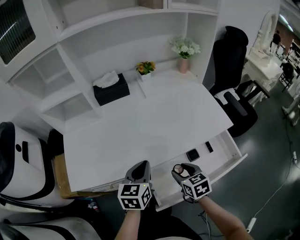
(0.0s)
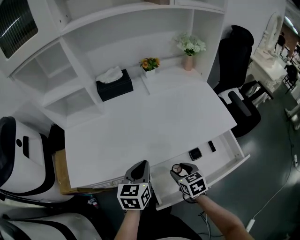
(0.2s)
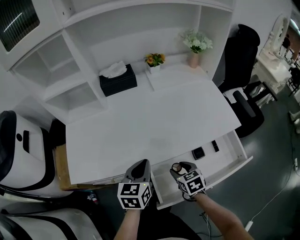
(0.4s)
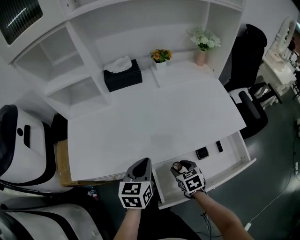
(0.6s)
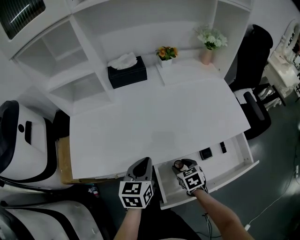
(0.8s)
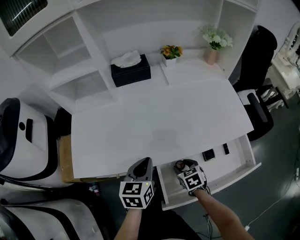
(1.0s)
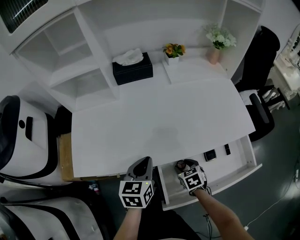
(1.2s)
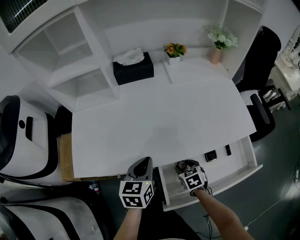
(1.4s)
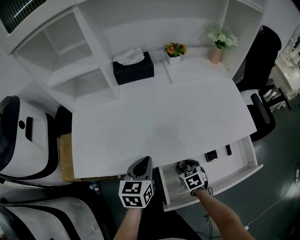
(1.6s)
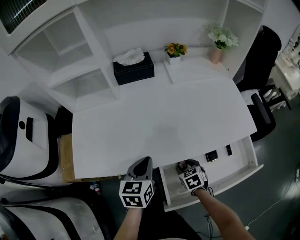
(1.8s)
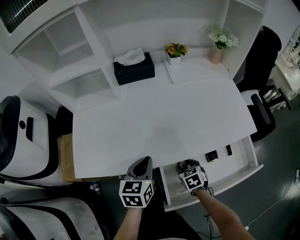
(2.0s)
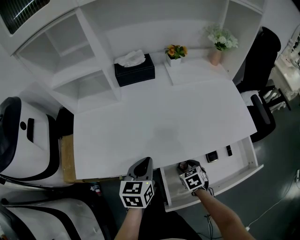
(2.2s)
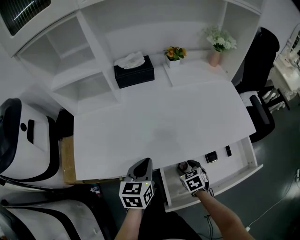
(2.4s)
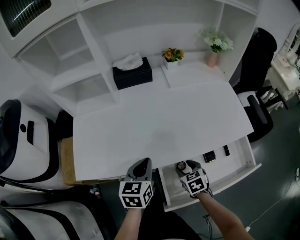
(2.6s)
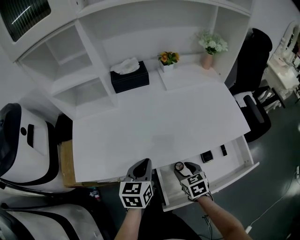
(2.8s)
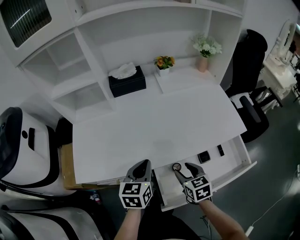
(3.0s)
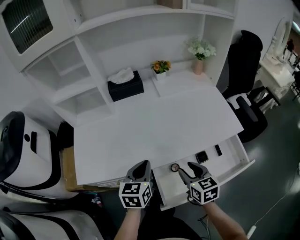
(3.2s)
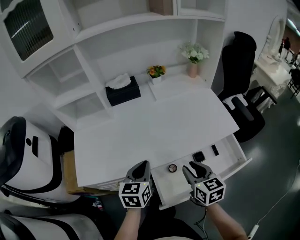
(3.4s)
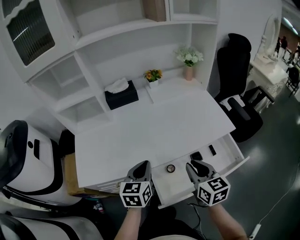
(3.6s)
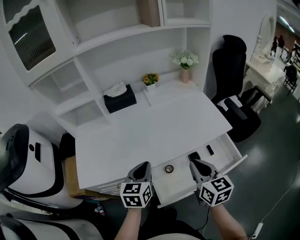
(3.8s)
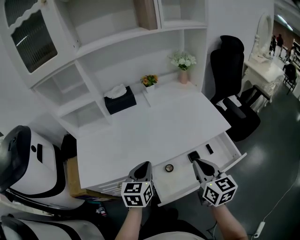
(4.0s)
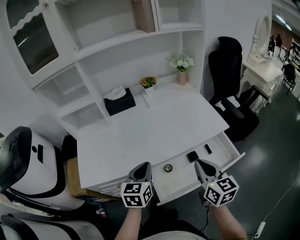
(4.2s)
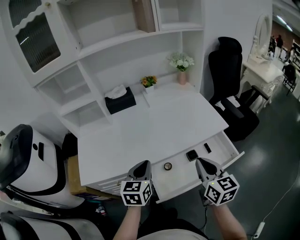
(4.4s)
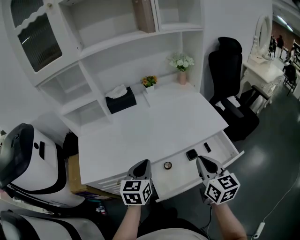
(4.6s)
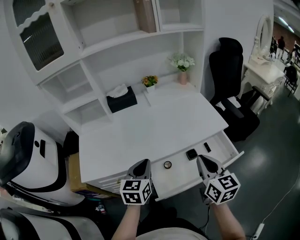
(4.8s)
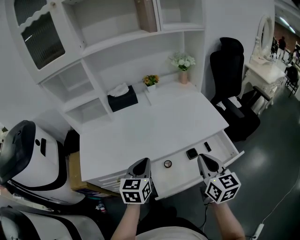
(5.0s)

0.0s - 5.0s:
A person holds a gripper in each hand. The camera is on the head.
0.0s - 1.6s: The right gripper moves downward, about 15 cm; the left gripper shifts some 5 cm to the left.
1.6s - 3.4s: The right gripper heads upward, covering some 20 cm, and angles its fingers upward, by approximately 30 degrees. Meanwhile the left gripper heads upward, covering about 5 cm.
3.4s - 5.0s: The right gripper shifts about 15 cm upward, to the right and backward, and closes, while the left gripper is displaced backward and upward by some 10 cm.

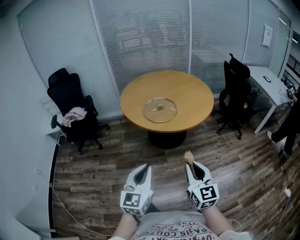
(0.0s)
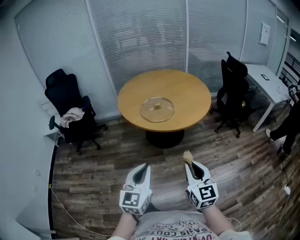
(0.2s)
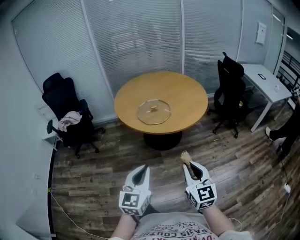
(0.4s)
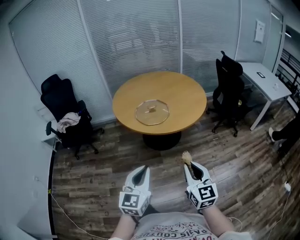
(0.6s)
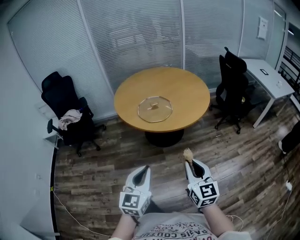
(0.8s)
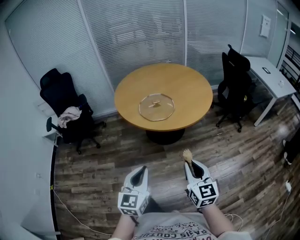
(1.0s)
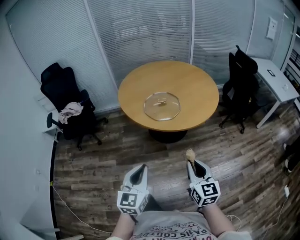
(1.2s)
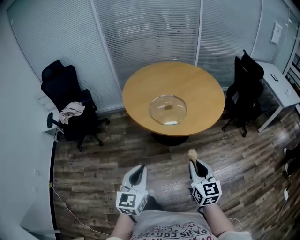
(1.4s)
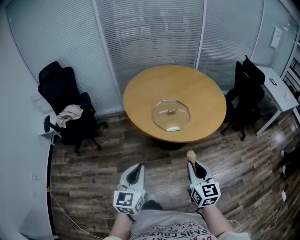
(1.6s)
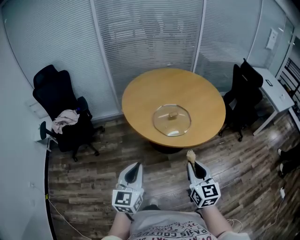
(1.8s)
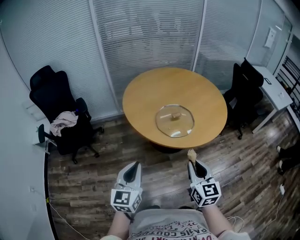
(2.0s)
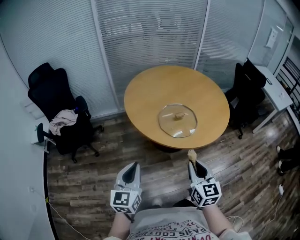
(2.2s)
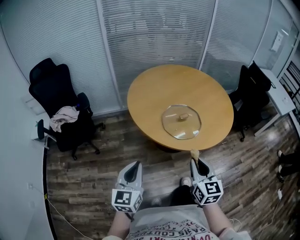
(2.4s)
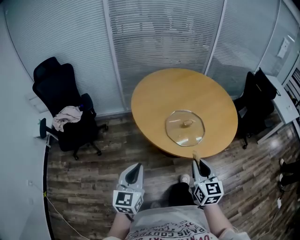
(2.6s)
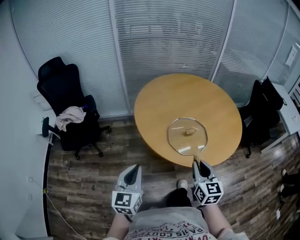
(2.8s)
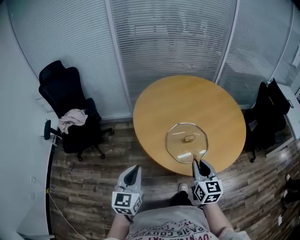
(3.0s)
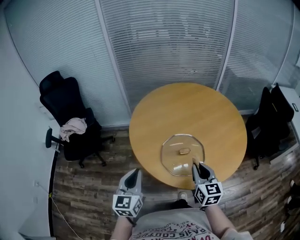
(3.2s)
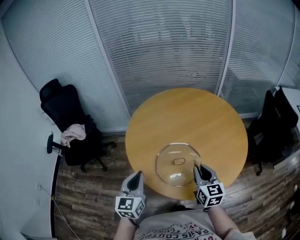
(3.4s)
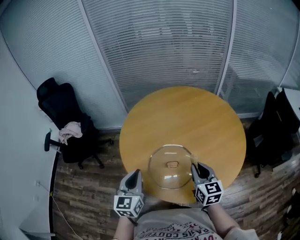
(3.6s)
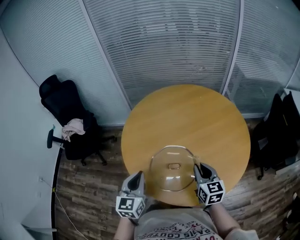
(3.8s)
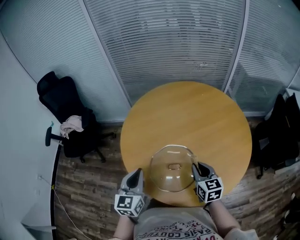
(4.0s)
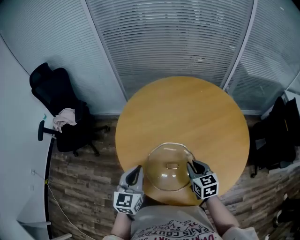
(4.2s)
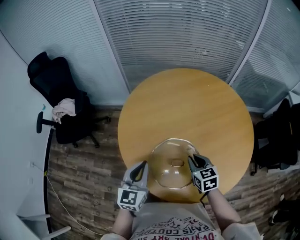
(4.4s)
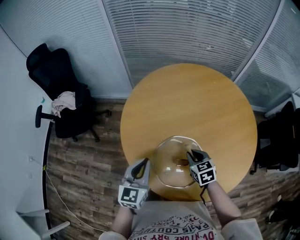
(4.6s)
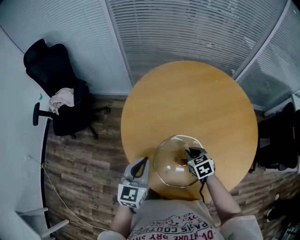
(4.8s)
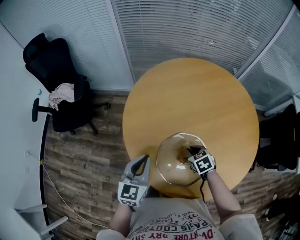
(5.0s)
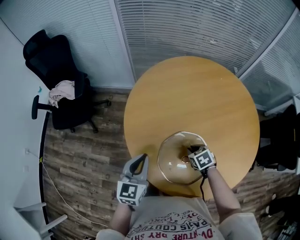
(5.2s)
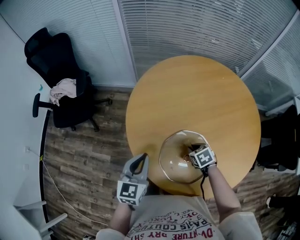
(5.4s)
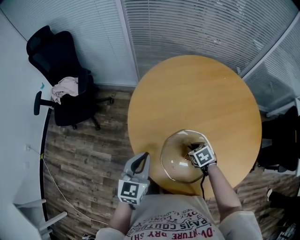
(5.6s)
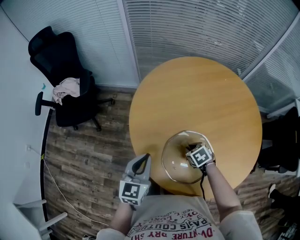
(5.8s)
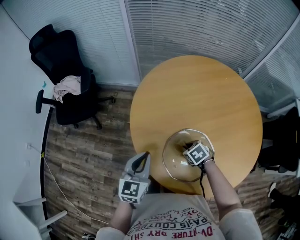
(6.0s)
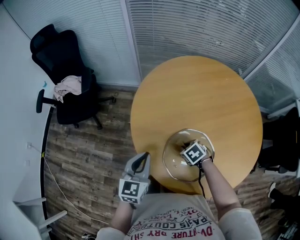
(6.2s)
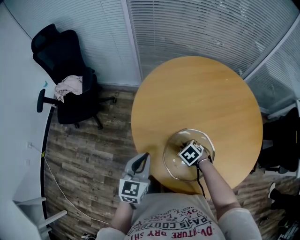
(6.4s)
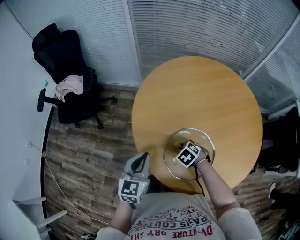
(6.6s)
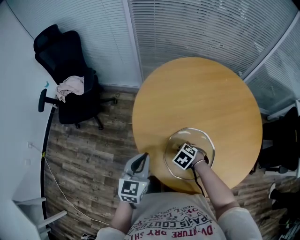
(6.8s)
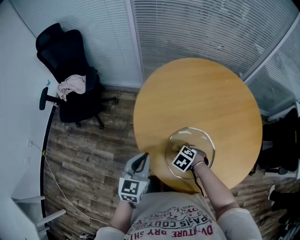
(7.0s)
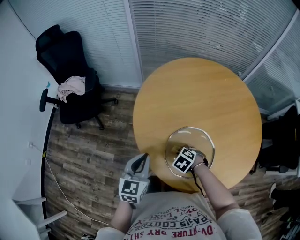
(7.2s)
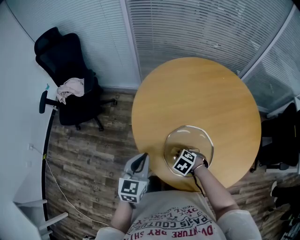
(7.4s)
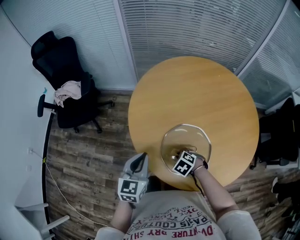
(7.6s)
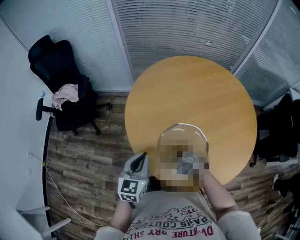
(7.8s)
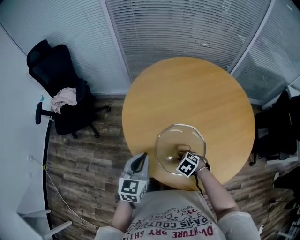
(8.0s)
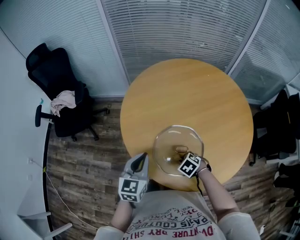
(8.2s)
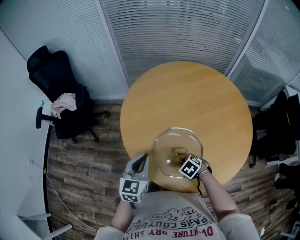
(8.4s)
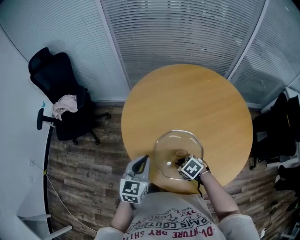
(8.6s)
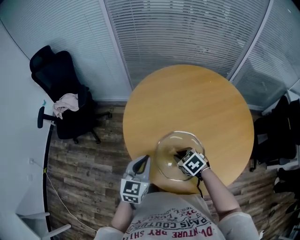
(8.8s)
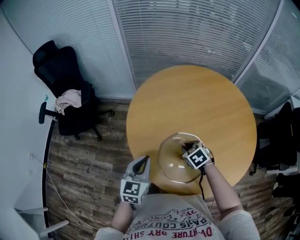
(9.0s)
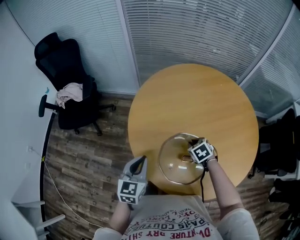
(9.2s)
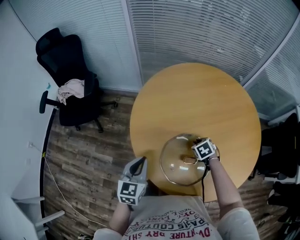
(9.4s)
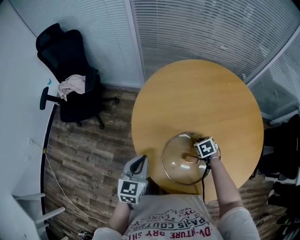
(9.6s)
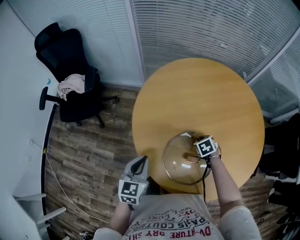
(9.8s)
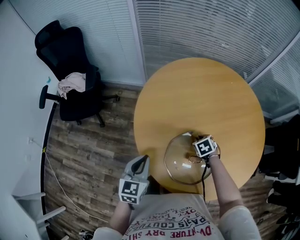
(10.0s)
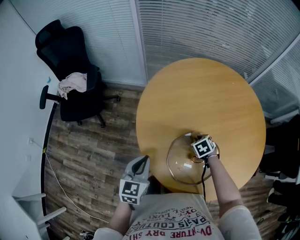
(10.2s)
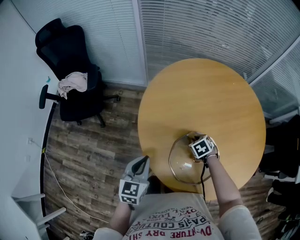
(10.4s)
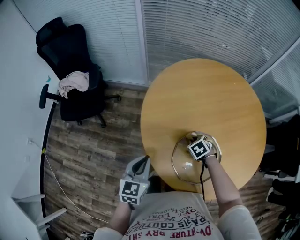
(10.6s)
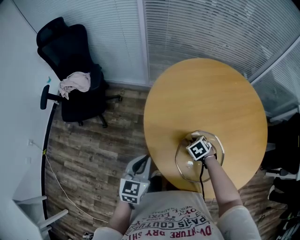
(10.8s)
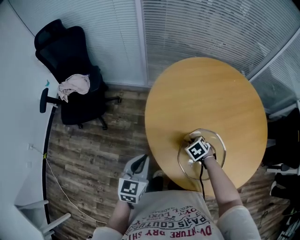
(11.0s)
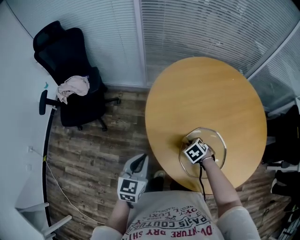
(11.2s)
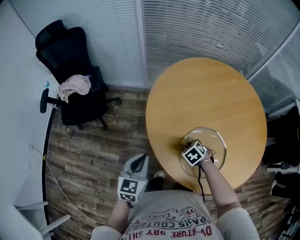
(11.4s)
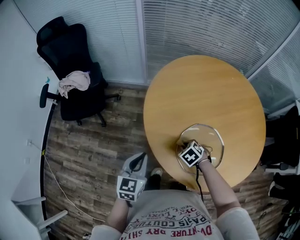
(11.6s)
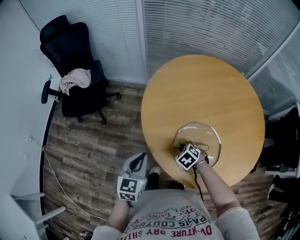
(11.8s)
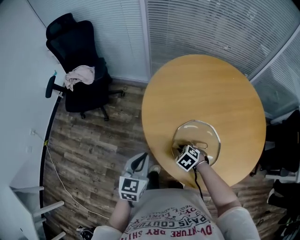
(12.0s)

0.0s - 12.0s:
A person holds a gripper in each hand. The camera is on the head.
0.0s - 1.6s: The two grippers go some 20 cm forward and to the left.
1.6s - 3.0s: The grippers both shift forward by roughly 25 cm.
3.0s - 4.4s: The left gripper moves forward and to the right, approximately 25 cm; the right gripper goes approximately 30 cm forward, downward and to the right, and turns by roughly 30 degrees.
4.4s - 6.0s: The left gripper is displaced to the left by approximately 10 cm; the right gripper shifts roughly 15 cm downward and to the left, and tilts its fingers approximately 30 degrees downward.
6.0s - 7.6s: The right gripper moves approximately 10 cm, and changes its angle by some 20 degrees.
7.6s - 9.0s: The right gripper moves some 15 cm, and turns by some 20 degrees.
9.0s - 10.4s: The left gripper heads to the left, covering approximately 10 cm; the right gripper moves downward and forward, roughly 10 cm.
10.4s - 12.0s: The right gripper shifts by about 15 cm, and turns by about 30 degrees, while the left gripper ends up approximately 10 cm from where it was.

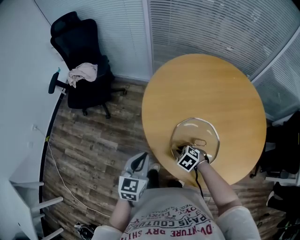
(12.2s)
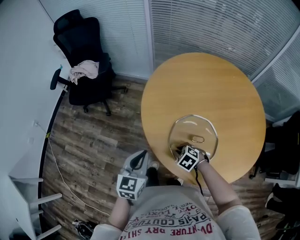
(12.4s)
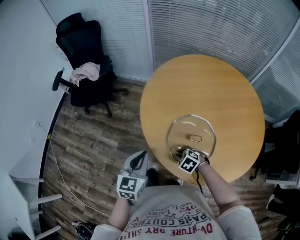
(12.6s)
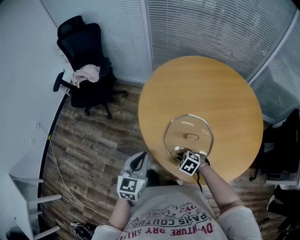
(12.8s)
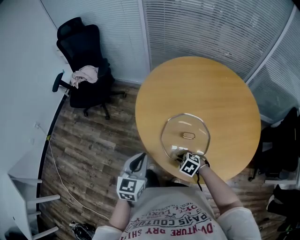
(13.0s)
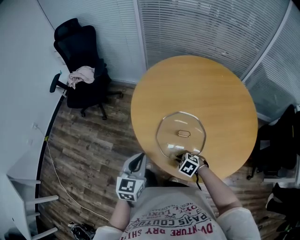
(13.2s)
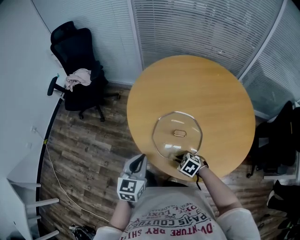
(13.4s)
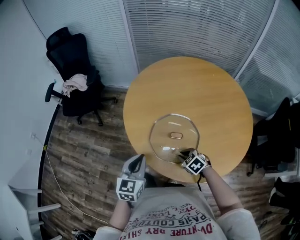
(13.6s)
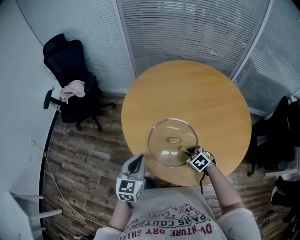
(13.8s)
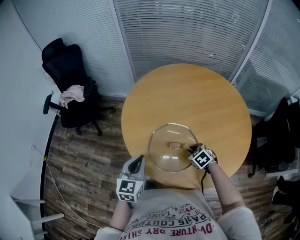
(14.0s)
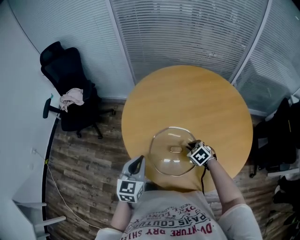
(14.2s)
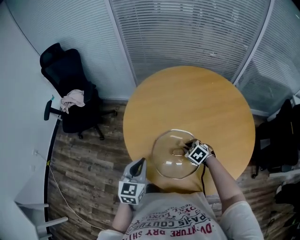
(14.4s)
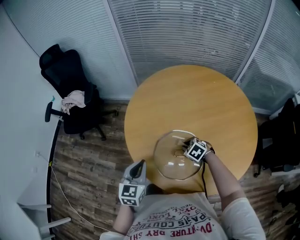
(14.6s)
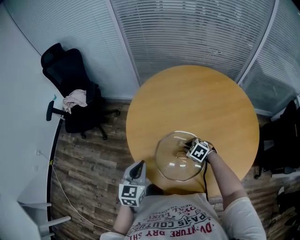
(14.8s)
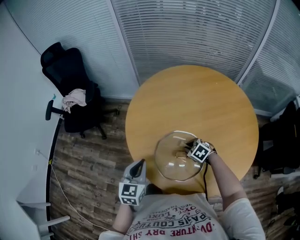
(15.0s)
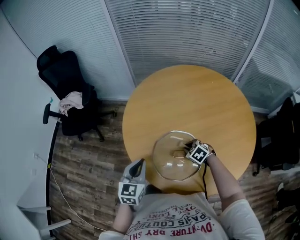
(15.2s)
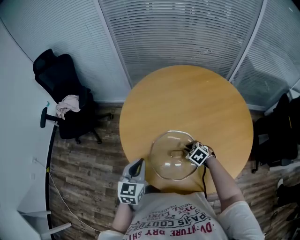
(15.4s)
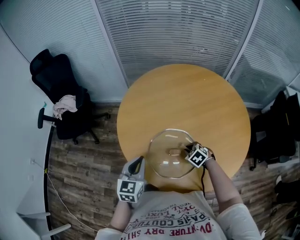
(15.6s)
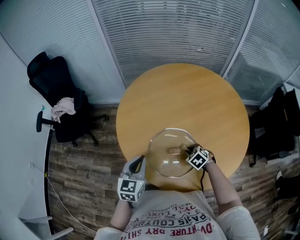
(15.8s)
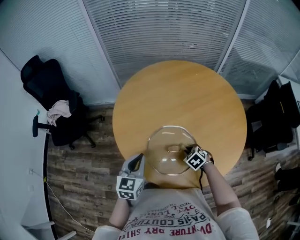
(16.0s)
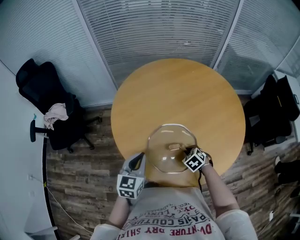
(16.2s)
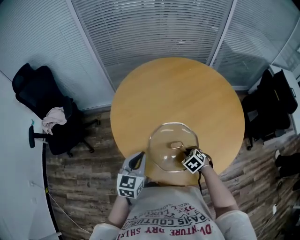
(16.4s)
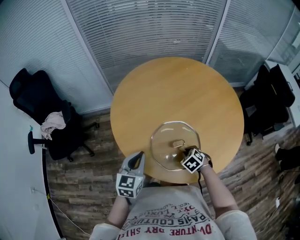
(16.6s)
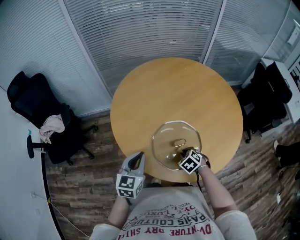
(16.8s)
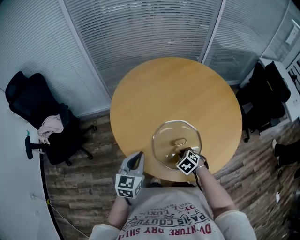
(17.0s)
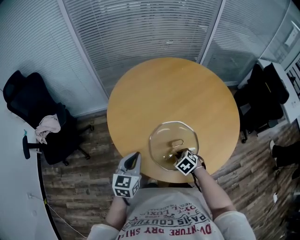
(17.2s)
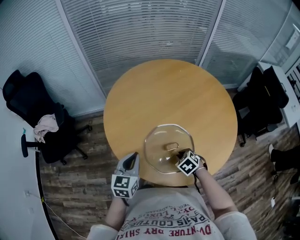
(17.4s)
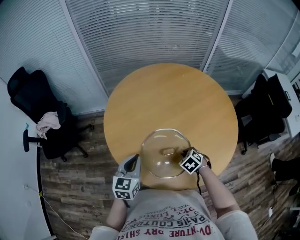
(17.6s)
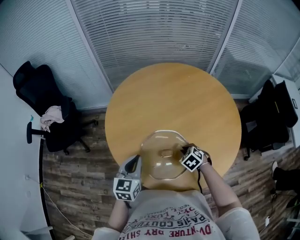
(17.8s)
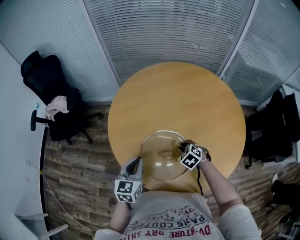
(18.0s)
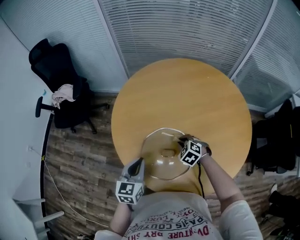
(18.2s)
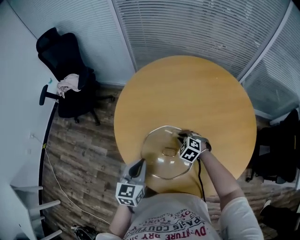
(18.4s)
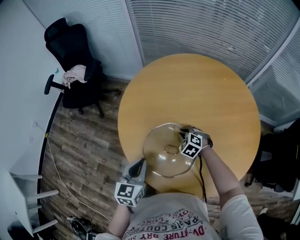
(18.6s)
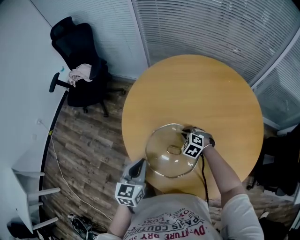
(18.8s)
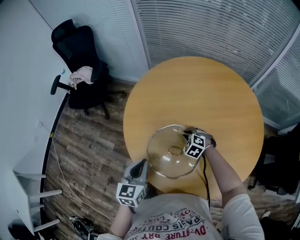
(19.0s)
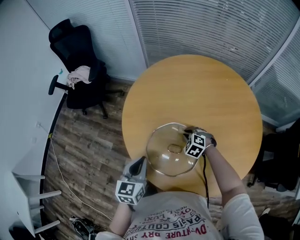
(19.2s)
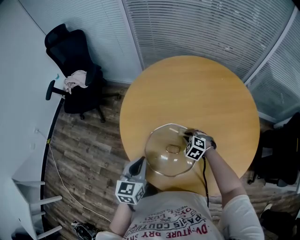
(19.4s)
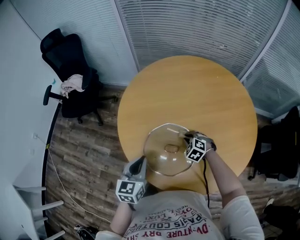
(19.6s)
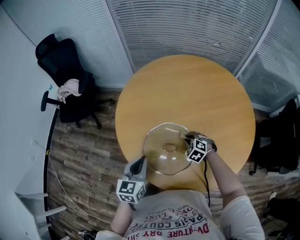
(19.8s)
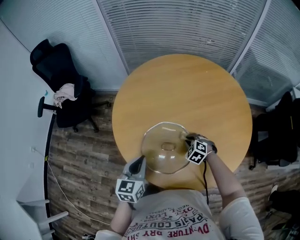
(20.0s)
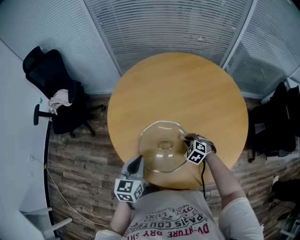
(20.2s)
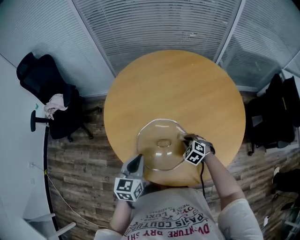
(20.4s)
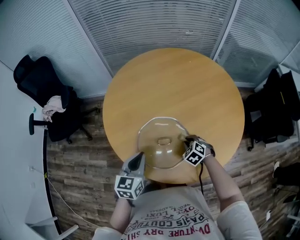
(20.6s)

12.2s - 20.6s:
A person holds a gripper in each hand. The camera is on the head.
12.2s - 13.6s: The two grippers go approximately 15 cm backward and to the right.
13.6s - 15.0s: Both grippers travel together forward, about 10 cm.
15.0s - 16.4s: The left gripper changes its angle by approximately 20 degrees. The right gripper changes place by approximately 10 cm, and swivels some 30 degrees.
16.4s - 17.8s: The right gripper travels forward by approximately 5 cm.
17.8s - 19.2s: The left gripper heads backward, covering some 5 cm, and turns by some 20 degrees, while the right gripper moves forward, approximately 10 cm, and swivels approximately 40 degrees.
19.2s - 20.6s: The left gripper turns by roughly 20 degrees. The right gripper moves backward and to the right, roughly 15 cm, and changes its angle by approximately 30 degrees.
